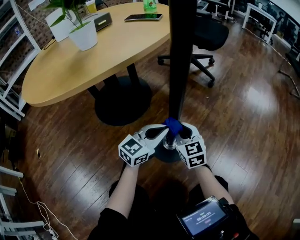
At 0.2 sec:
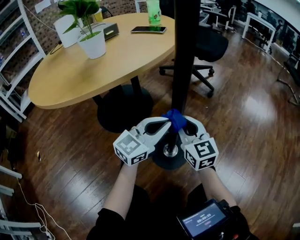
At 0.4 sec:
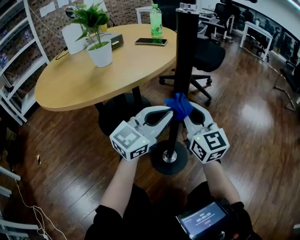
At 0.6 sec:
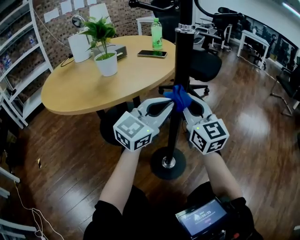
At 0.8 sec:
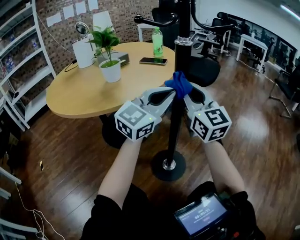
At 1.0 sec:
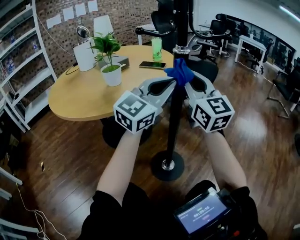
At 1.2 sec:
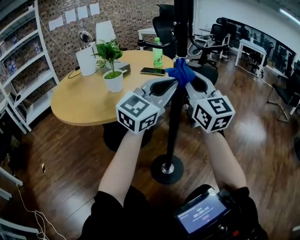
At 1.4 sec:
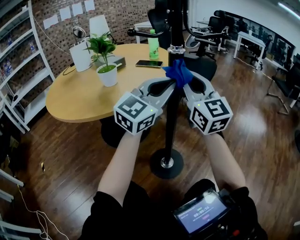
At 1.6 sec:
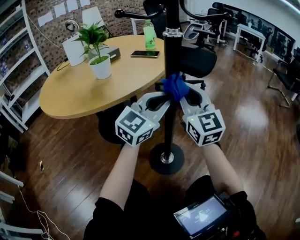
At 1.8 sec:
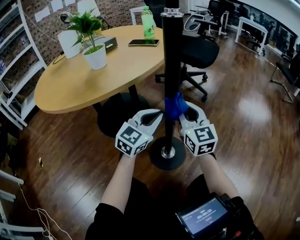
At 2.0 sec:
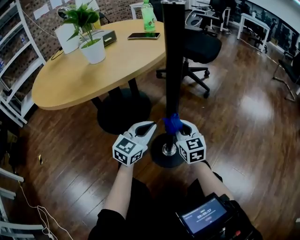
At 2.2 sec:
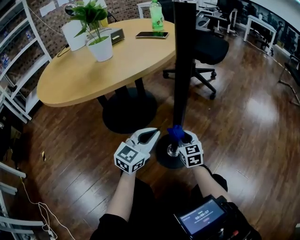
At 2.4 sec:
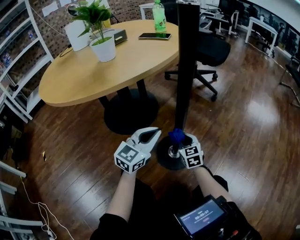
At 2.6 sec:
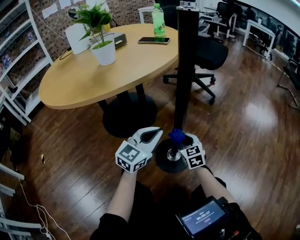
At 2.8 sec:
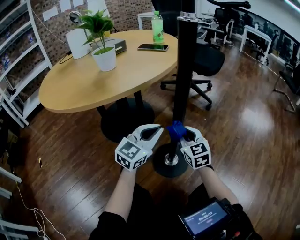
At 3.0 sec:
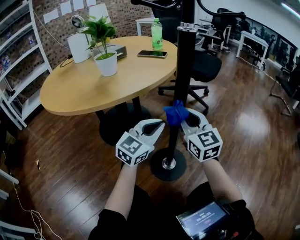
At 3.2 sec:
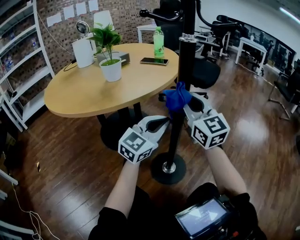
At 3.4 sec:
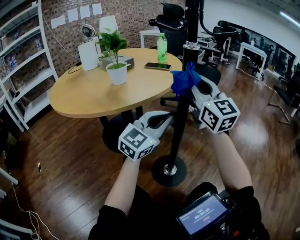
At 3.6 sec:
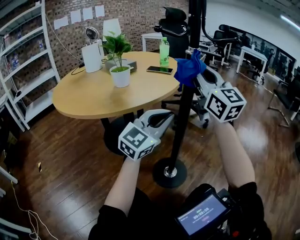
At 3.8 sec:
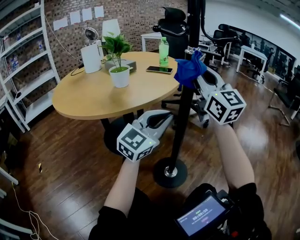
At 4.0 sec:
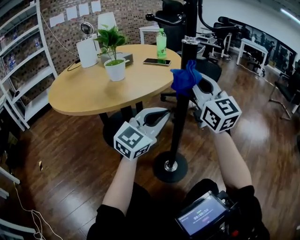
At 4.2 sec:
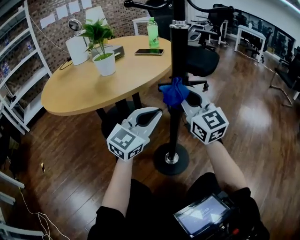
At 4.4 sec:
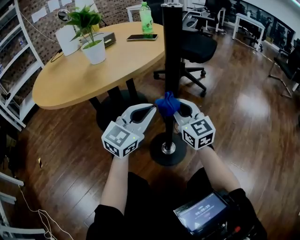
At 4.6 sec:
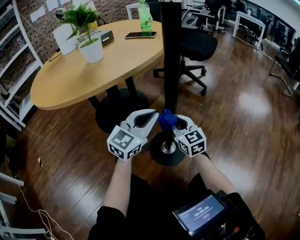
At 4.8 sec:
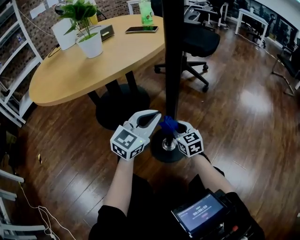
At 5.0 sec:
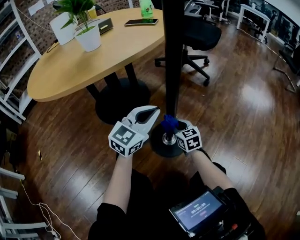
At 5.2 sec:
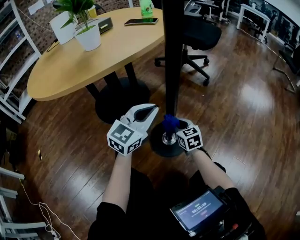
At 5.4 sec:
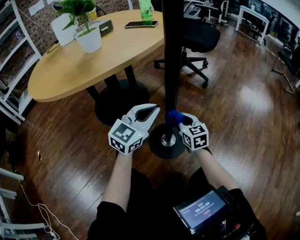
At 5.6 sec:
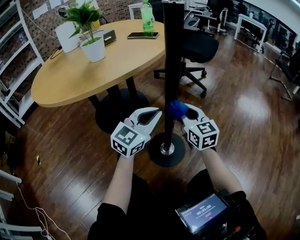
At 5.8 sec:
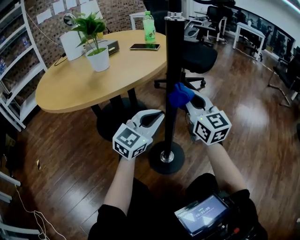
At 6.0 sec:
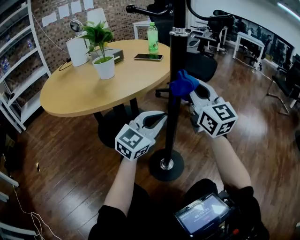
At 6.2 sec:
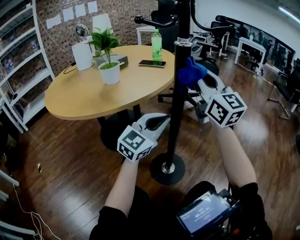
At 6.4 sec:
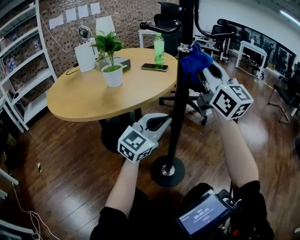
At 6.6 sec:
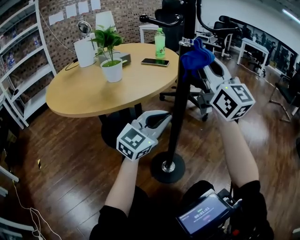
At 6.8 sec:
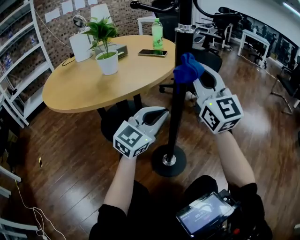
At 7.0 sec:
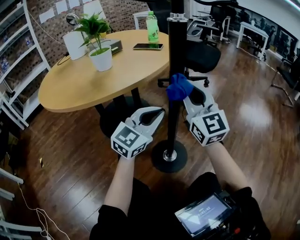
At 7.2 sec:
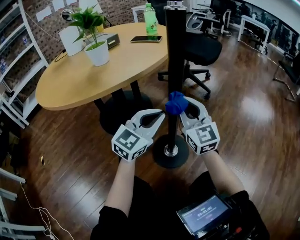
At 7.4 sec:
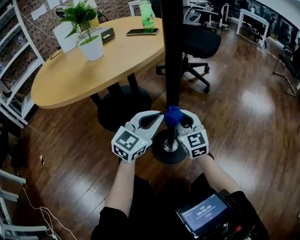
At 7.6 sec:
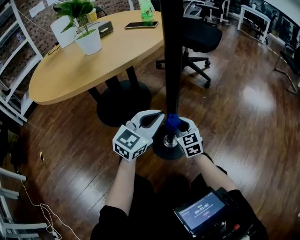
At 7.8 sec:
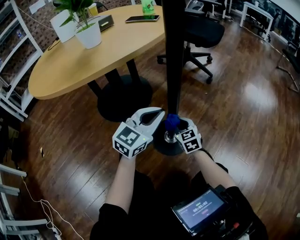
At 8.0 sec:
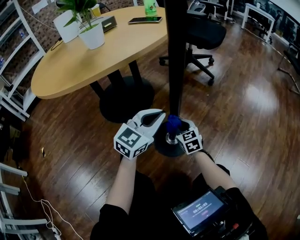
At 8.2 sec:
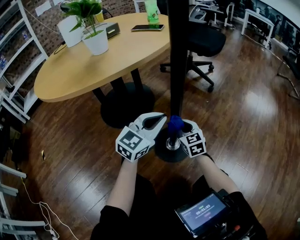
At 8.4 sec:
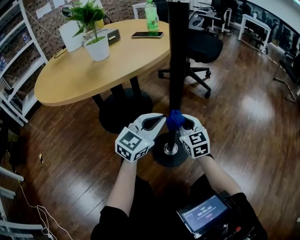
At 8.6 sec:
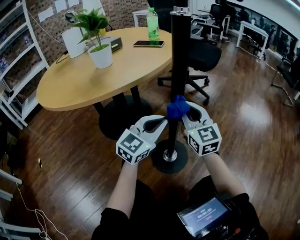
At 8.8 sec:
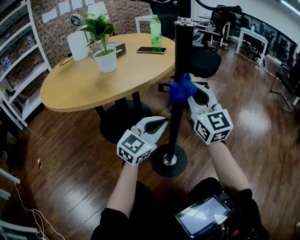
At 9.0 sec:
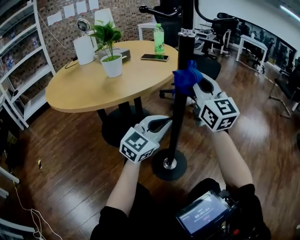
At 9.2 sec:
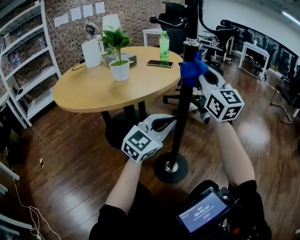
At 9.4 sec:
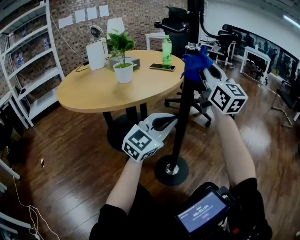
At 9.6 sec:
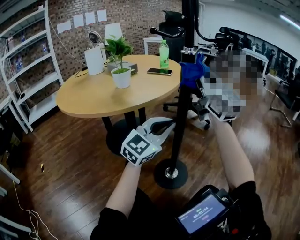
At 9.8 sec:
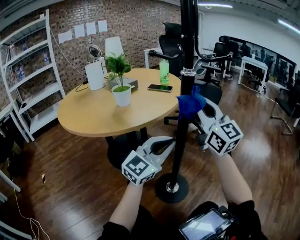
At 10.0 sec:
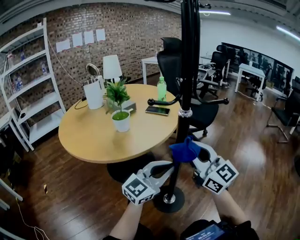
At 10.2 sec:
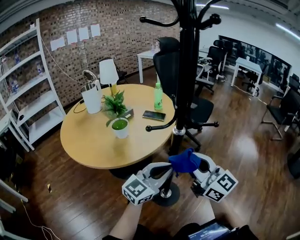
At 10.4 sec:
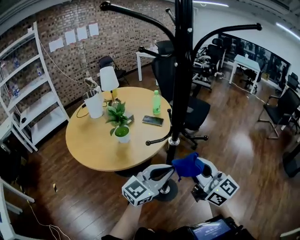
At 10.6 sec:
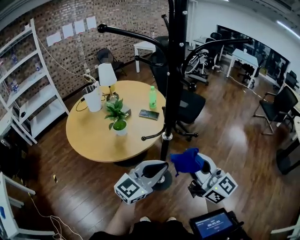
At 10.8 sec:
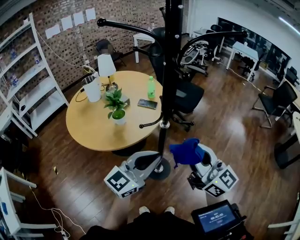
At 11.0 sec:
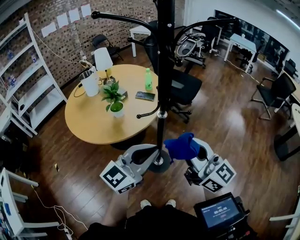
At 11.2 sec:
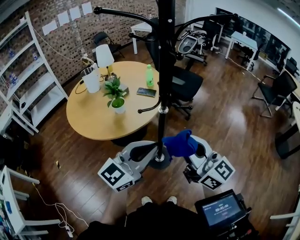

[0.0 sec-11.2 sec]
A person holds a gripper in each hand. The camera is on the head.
0.0 sec to 1.6 sec: Both grippers travel together upward, some 30 cm. The right gripper points its fingers about 30 degrees further upward. The left gripper turns by some 20 degrees.
1.6 sec to 3.2 sec: The right gripper goes downward and returns, some 40 cm each way; the left gripper reaches roughly 25 cm downward, then returns.
3.2 sec to 4.8 sec: The right gripper moves downward, some 35 cm, and tips its fingers downward by approximately 30 degrees, while the left gripper travels downward by about 10 cm.
4.8 sec to 6.4 sec: The right gripper moves upward, about 50 cm, and angles its fingers upward, by roughly 50 degrees, while the left gripper moves upward, some 15 cm.
6.4 sec to 8.0 sec: The left gripper heads downward, covering some 20 cm. Meanwhile the right gripper is displaced downward by approximately 60 cm, and tilts its fingers roughly 50 degrees downward.
8.0 sec to 9.6 sec: The right gripper shifts approximately 50 cm upward, and tilts its fingers approximately 50 degrees upward. Meanwhile the left gripper is displaced upward by about 20 cm.
9.6 sec to 11.2 sec: The left gripper travels upward by roughly 40 cm, and rotates about 20 degrees; the right gripper is displaced upward and backward by some 35 cm, and swivels roughly 20 degrees.

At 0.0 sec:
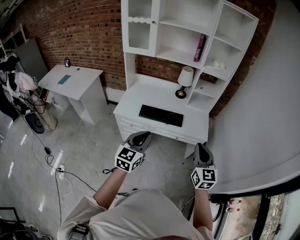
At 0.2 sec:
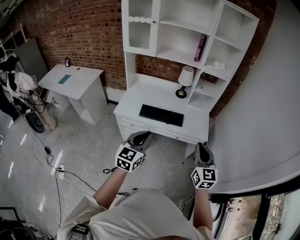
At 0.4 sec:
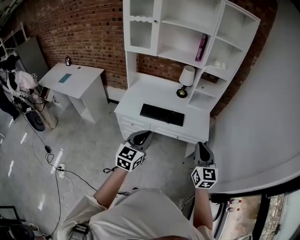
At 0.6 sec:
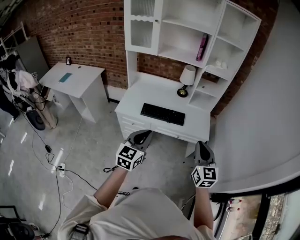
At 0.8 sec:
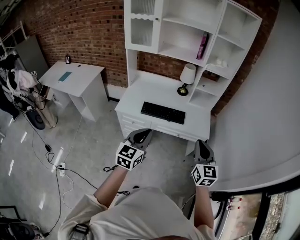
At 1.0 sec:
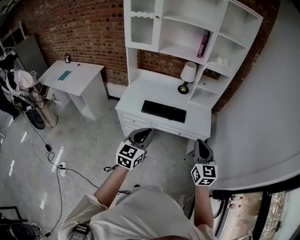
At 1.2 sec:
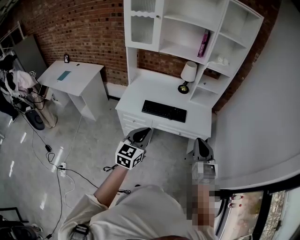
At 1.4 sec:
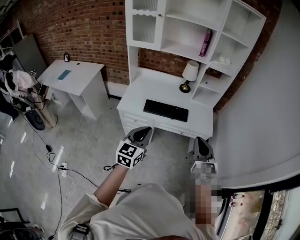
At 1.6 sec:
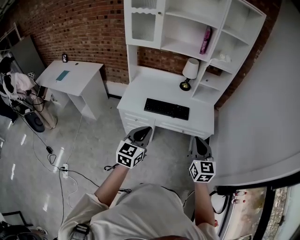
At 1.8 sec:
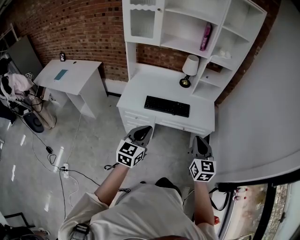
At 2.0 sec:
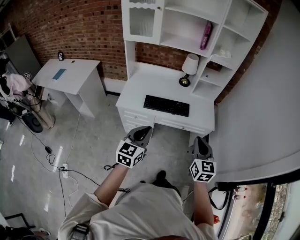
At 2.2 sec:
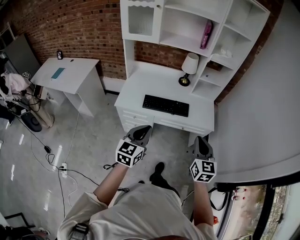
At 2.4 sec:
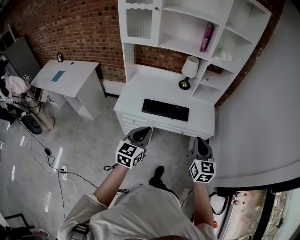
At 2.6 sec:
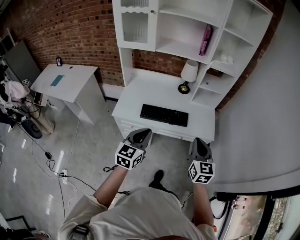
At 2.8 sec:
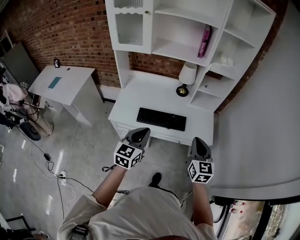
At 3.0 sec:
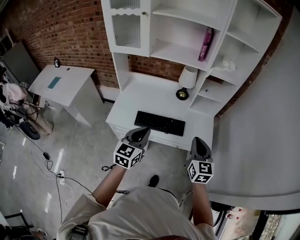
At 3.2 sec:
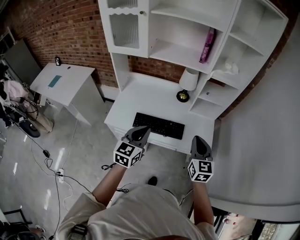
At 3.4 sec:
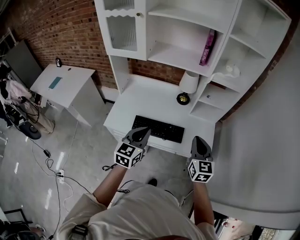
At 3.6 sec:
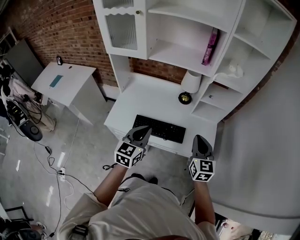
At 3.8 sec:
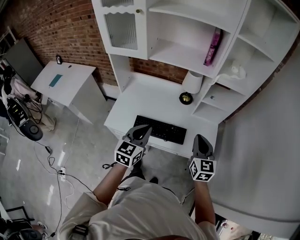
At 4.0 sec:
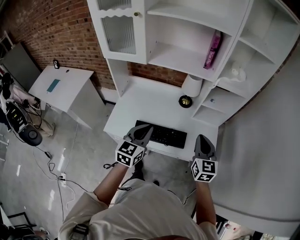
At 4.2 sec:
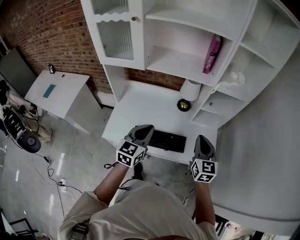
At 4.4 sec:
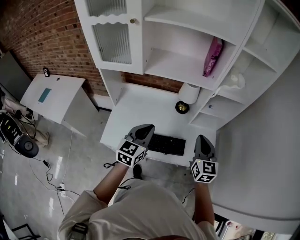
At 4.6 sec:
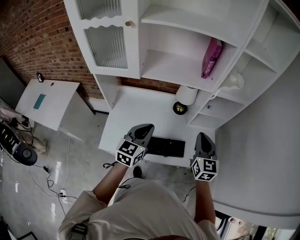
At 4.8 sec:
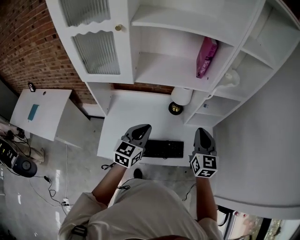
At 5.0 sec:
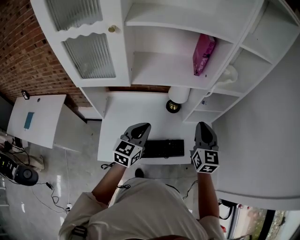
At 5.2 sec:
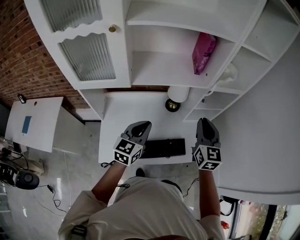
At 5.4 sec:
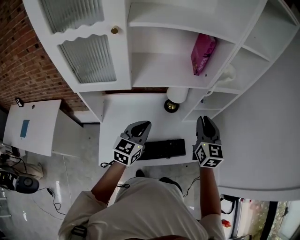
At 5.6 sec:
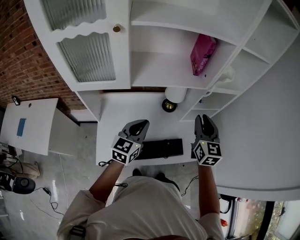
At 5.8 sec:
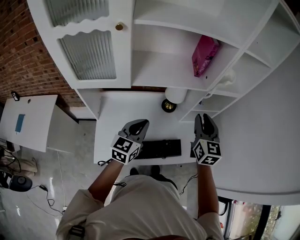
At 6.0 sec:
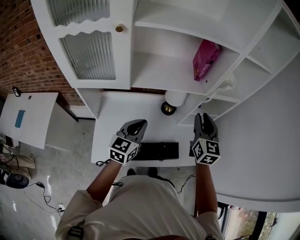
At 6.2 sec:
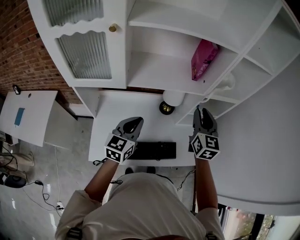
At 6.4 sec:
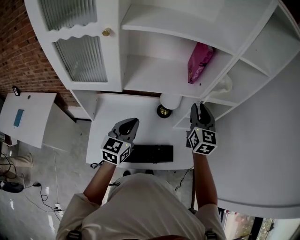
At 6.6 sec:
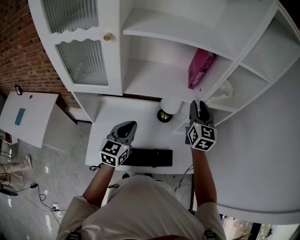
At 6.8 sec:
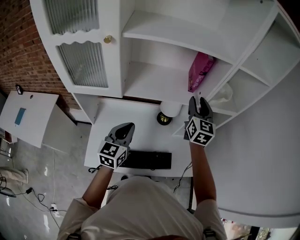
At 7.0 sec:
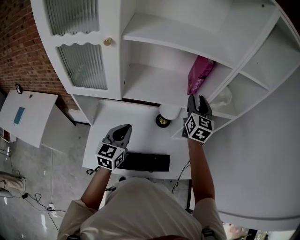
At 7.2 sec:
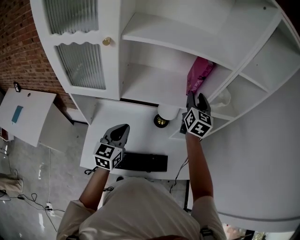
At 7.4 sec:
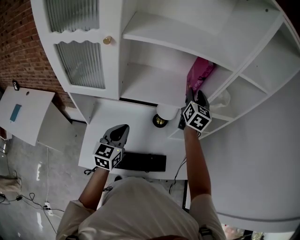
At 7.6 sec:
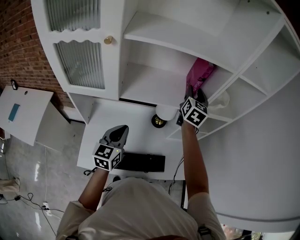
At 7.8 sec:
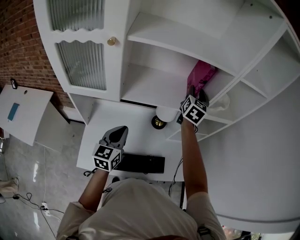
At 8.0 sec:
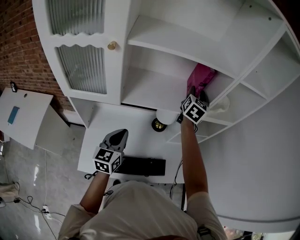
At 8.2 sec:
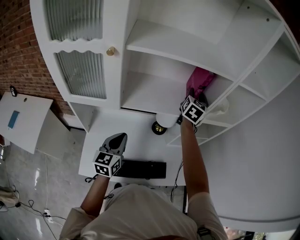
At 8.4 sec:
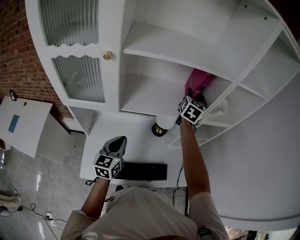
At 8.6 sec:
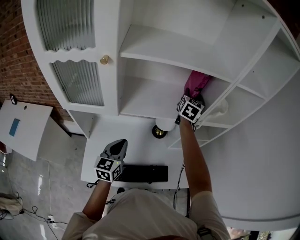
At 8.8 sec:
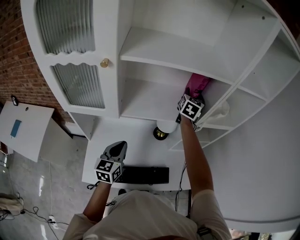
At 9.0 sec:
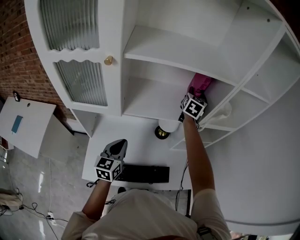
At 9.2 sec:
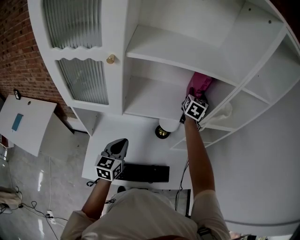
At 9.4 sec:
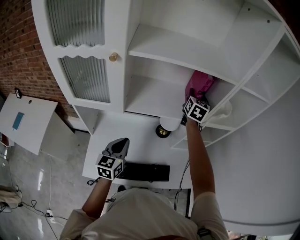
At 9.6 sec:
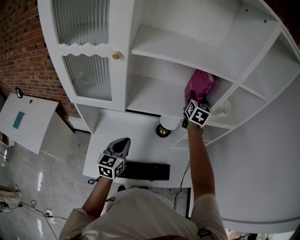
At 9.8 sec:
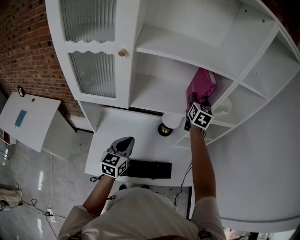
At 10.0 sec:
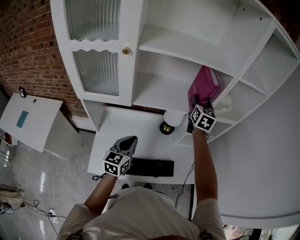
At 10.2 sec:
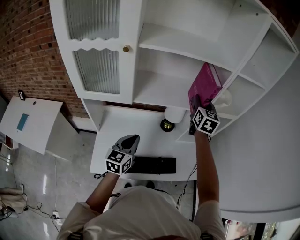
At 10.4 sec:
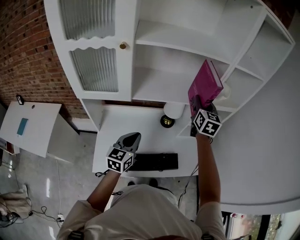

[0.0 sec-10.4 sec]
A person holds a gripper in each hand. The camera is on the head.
0.0 sec to 1.4 sec: The left gripper changes place by approximately 5 cm. Meanwhile the right gripper shifts some 5 cm to the left.
1.4 sec to 3.0 sec: The grippers both shift forward by roughly 20 cm.
3.0 sec to 4.4 sec: The two grippers go roughly 20 cm forward.
4.4 sec to 6.0 sec: The right gripper moves forward, to the left and upward, some 15 cm, and opens its fingers. The left gripper shifts about 15 cm forward and to the left.
6.0 sec to 7.4 sec: The right gripper goes some 20 cm forward.
7.4 sec to 9.0 sec: The right gripper is displaced forward by roughly 10 cm.
9.0 sec to 10.4 sec: The left gripper moves backward, approximately 5 cm; the right gripper is displaced backward by some 20 cm.

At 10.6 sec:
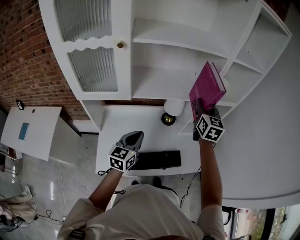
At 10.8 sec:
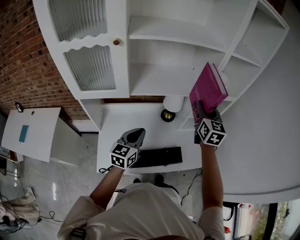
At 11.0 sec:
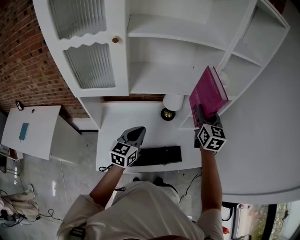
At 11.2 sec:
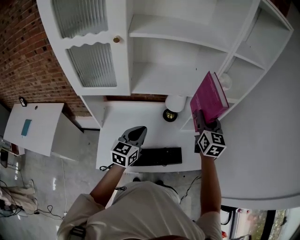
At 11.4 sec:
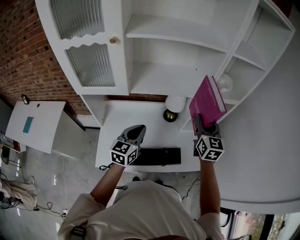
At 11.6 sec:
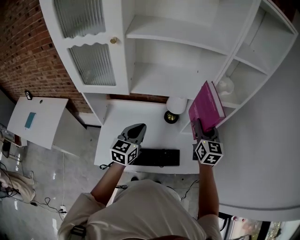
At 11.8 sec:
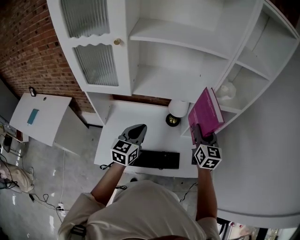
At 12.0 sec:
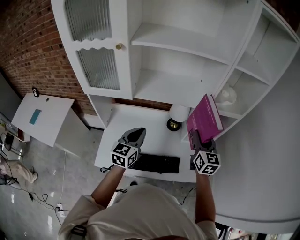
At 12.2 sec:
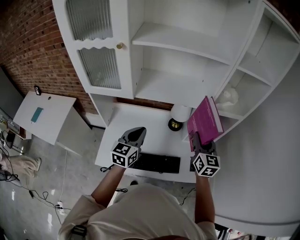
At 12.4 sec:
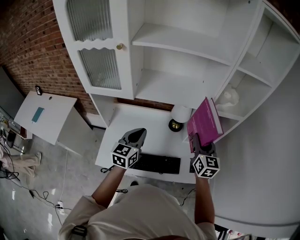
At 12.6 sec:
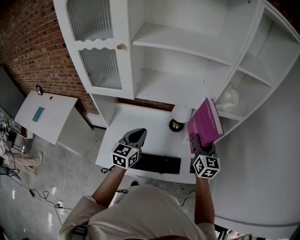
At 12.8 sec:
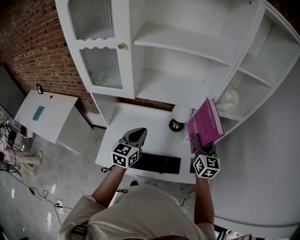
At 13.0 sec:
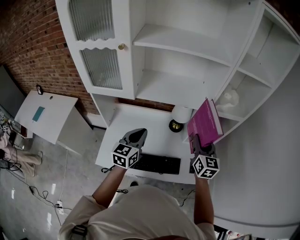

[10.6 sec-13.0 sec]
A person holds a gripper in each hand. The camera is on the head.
10.6 sec to 11.8 sec: The right gripper goes approximately 10 cm downward and backward.
11.8 sec to 13.0 sec: The grippers make only small movements.
